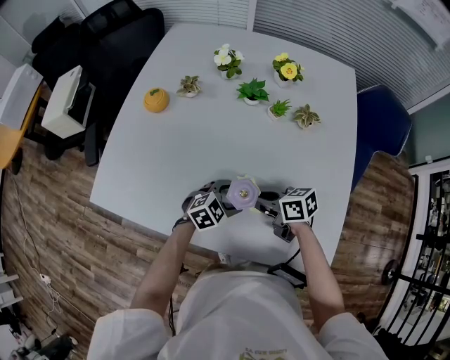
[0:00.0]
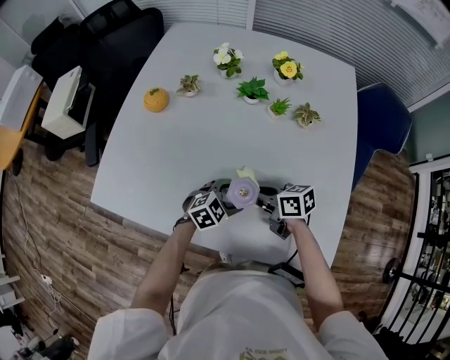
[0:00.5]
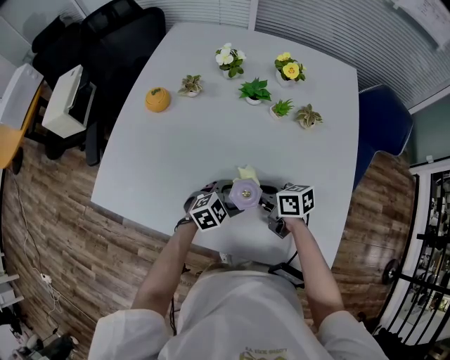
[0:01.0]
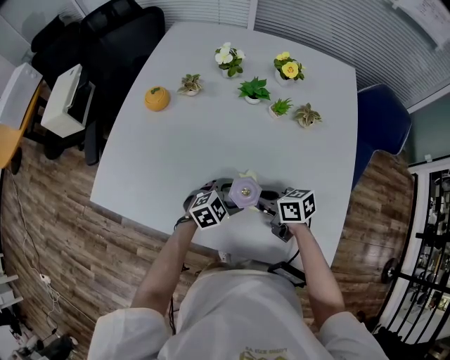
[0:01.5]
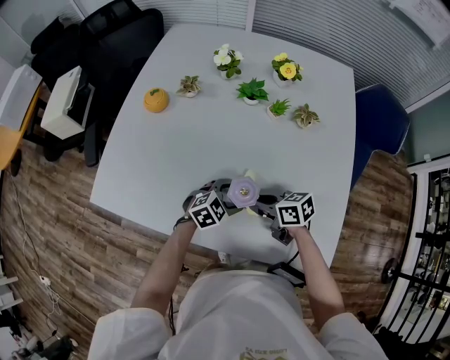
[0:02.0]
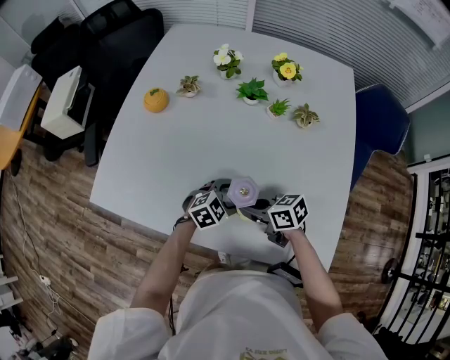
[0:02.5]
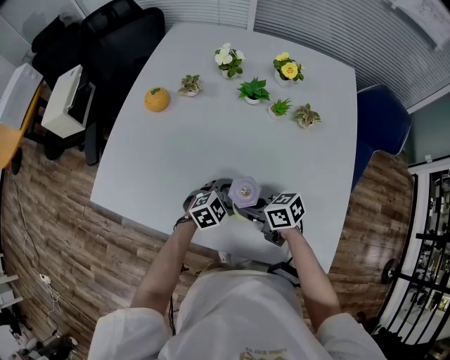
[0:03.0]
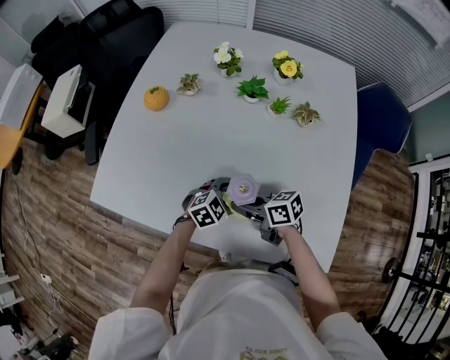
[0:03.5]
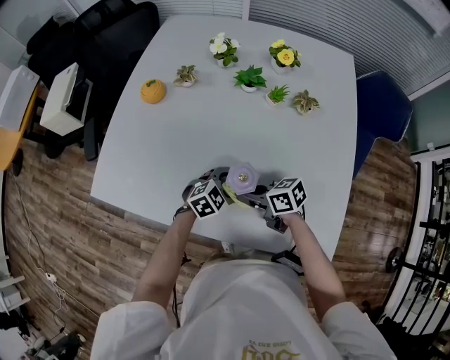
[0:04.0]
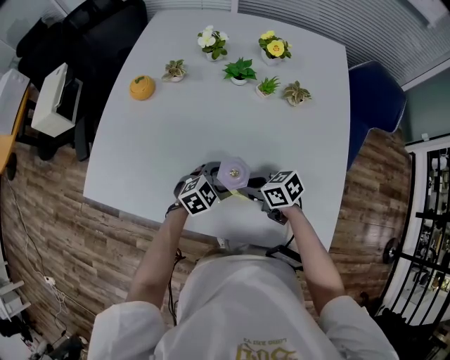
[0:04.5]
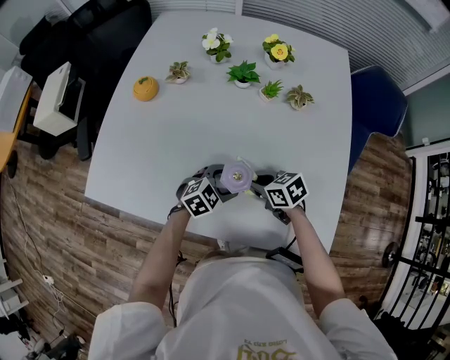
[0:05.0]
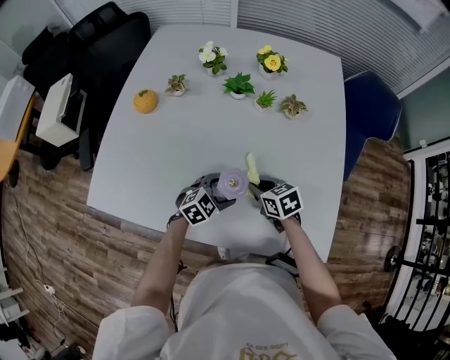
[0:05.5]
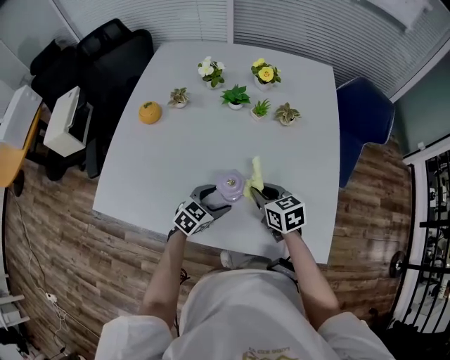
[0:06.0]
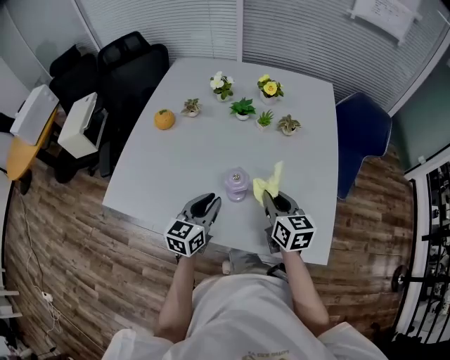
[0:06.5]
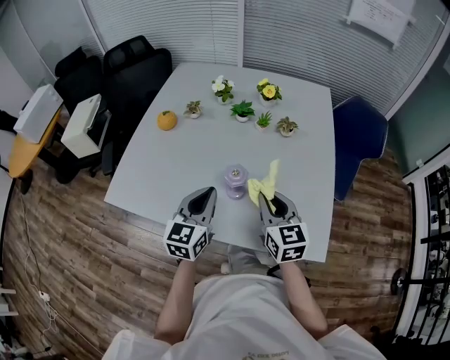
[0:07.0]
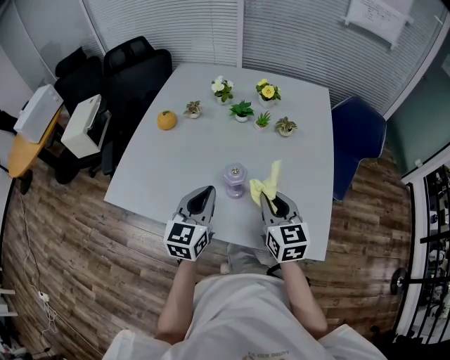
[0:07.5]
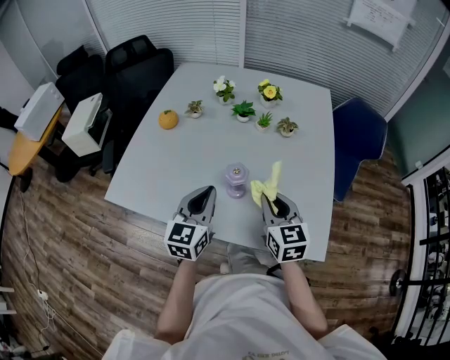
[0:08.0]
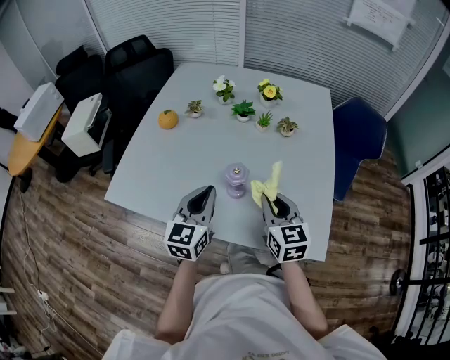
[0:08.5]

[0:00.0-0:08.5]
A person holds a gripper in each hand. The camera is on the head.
0:00.0 to 0:04.0: The grippers make only small movements.
0:04.0 to 0:06.5: The grippers both shift upward by about 15 cm. The left gripper points its fingers some 30 degrees further upward, and closes; the right gripper swivels some 50 degrees.
0:06.5 to 0:08.5: The right gripper moves upward, some 5 cm, while the left gripper moves upward, about 10 cm.

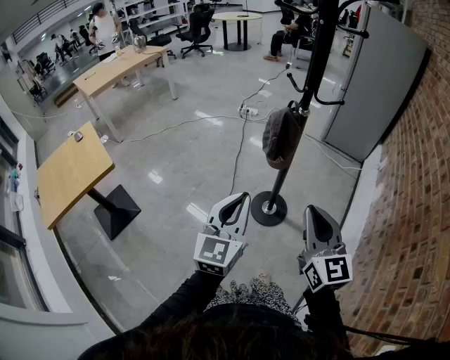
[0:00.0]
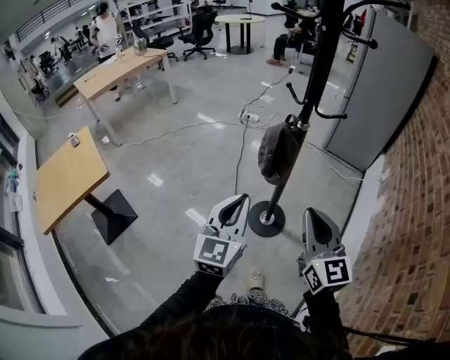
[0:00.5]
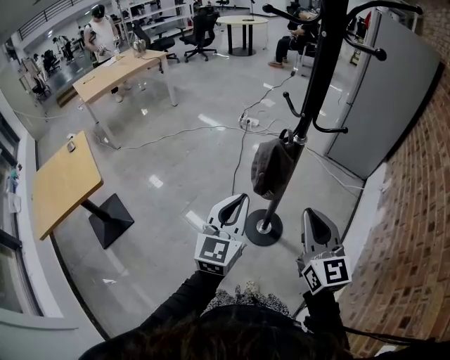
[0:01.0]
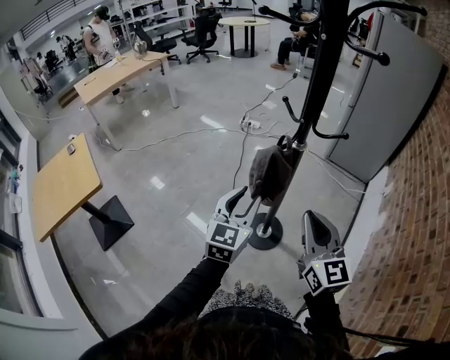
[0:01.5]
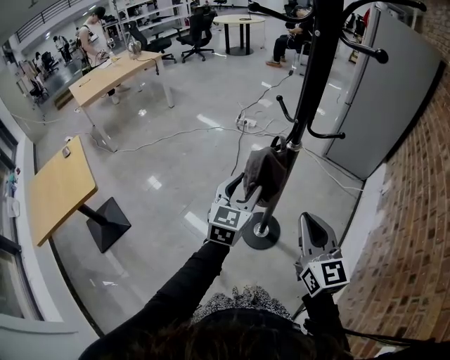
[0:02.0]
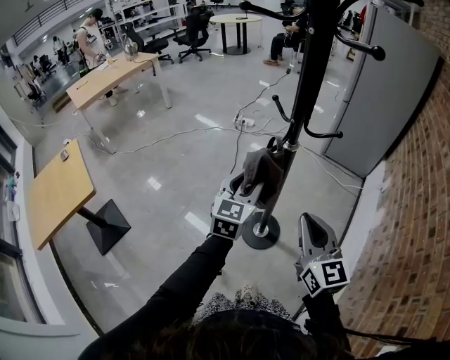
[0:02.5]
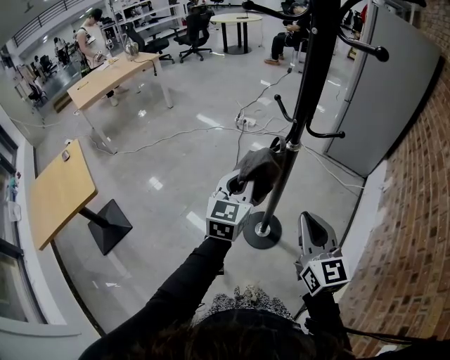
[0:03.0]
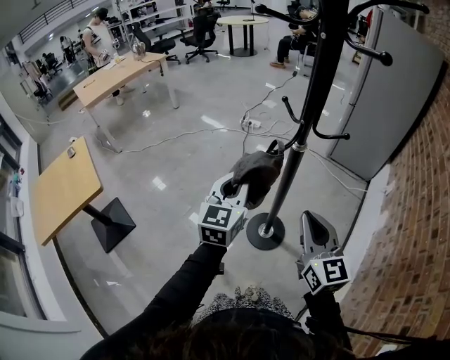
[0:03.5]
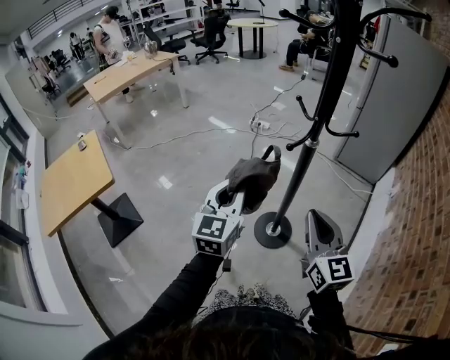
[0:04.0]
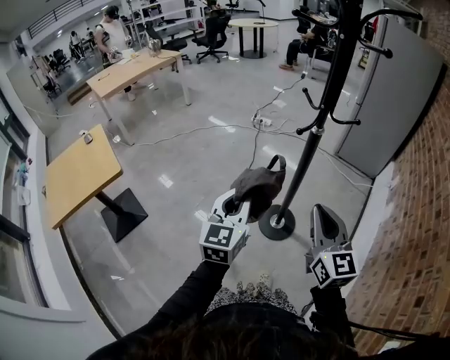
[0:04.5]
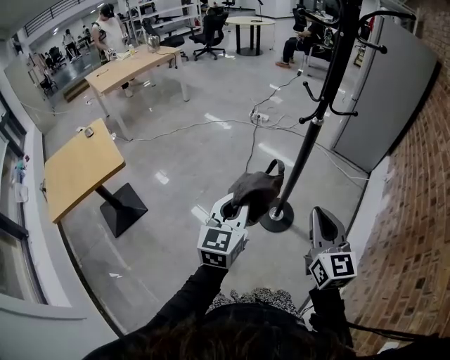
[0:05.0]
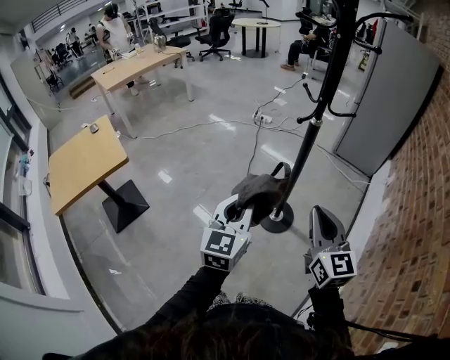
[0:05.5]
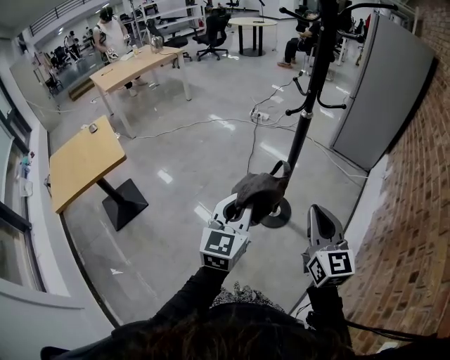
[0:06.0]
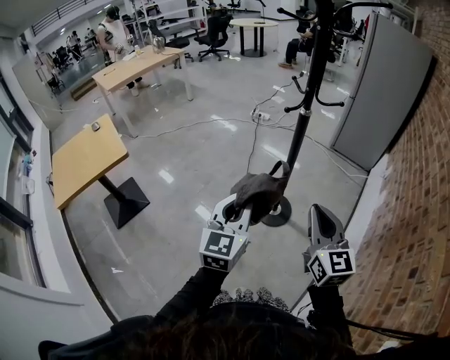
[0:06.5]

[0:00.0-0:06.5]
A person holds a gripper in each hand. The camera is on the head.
0:00.0 to 0:02.0: Both grippers travel together forward, approximately 20 cm. The left gripper opens.
0:02.0 to 0:04.5: The right gripper heads backward and to the left, covering approximately 10 cm; the left gripper travels backward and to the left by roughly 20 cm, and closes its fingers.
0:04.5 to 0:06.5: The two grippers go some 10 cm backward.

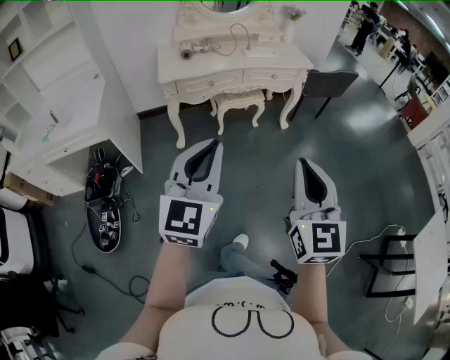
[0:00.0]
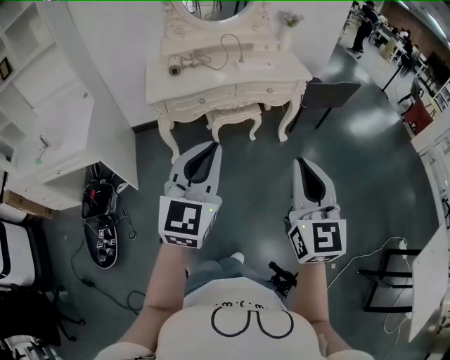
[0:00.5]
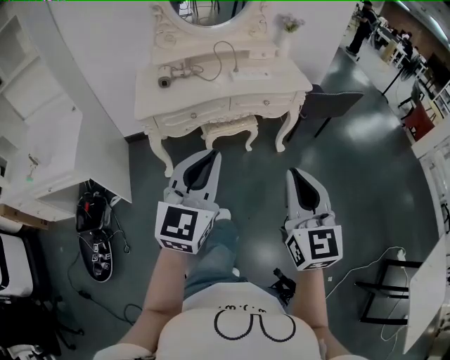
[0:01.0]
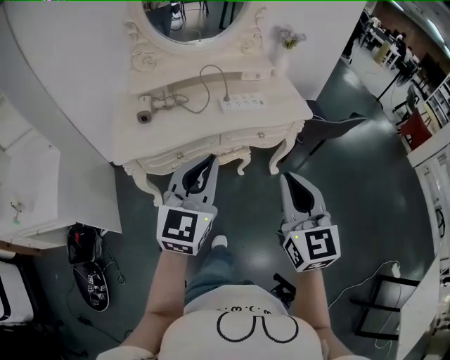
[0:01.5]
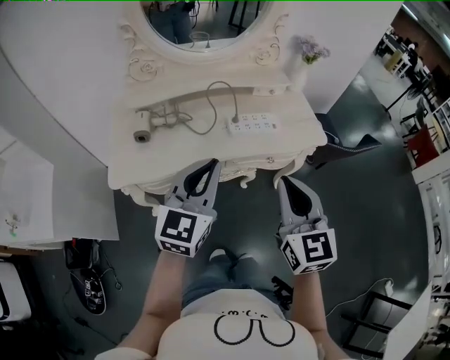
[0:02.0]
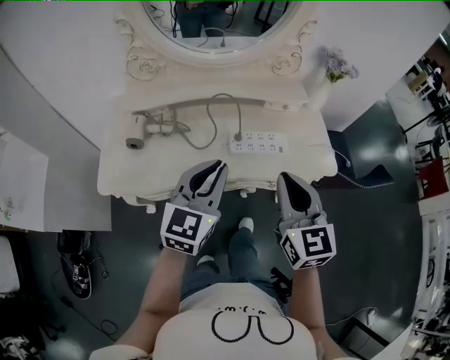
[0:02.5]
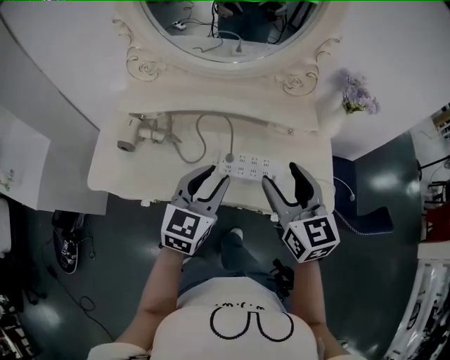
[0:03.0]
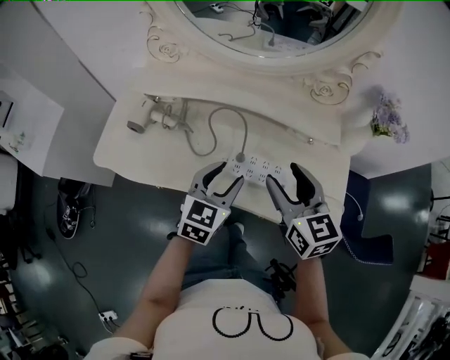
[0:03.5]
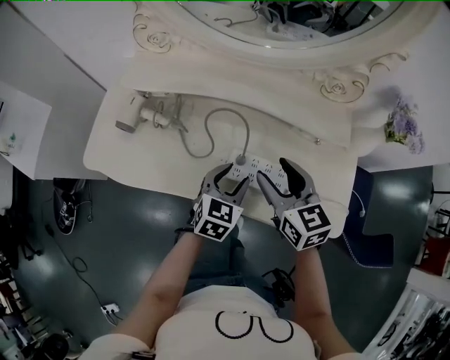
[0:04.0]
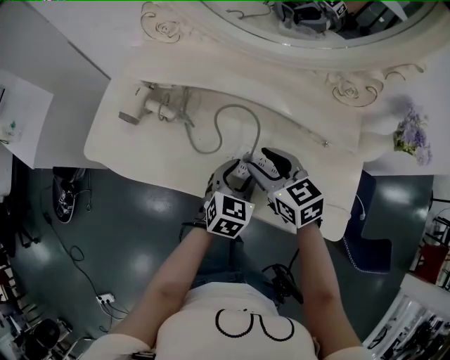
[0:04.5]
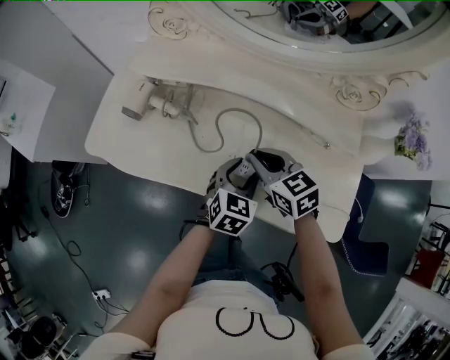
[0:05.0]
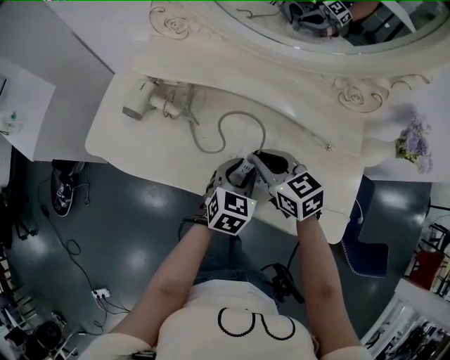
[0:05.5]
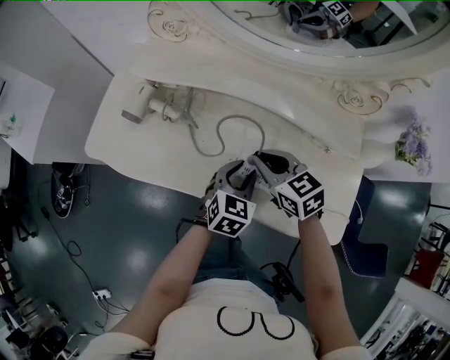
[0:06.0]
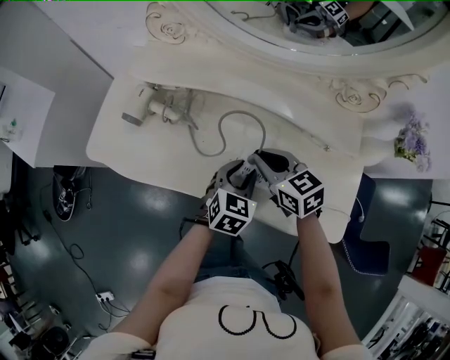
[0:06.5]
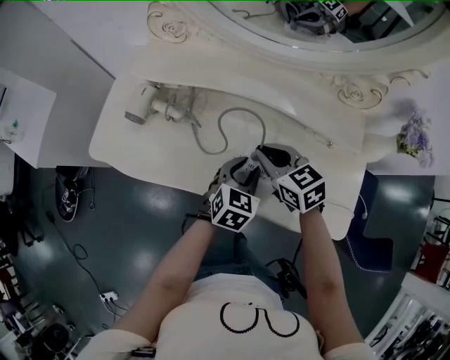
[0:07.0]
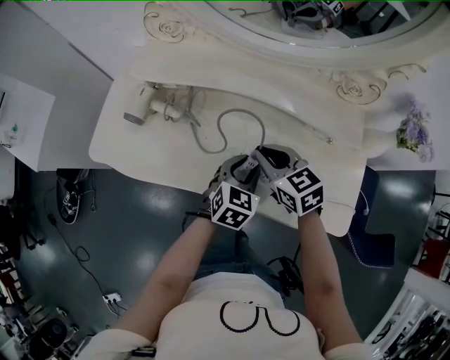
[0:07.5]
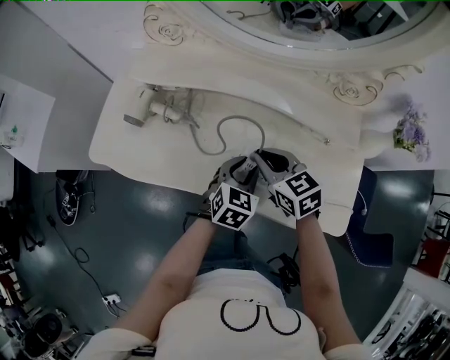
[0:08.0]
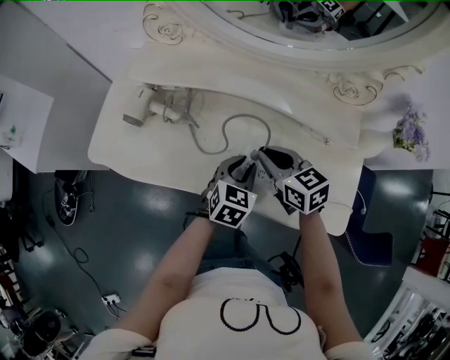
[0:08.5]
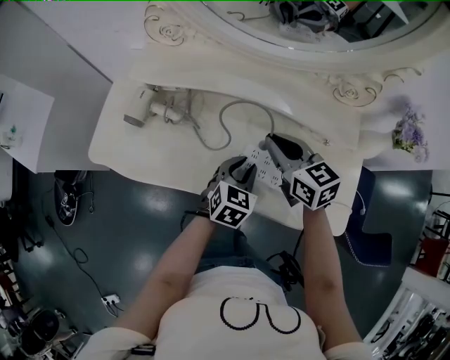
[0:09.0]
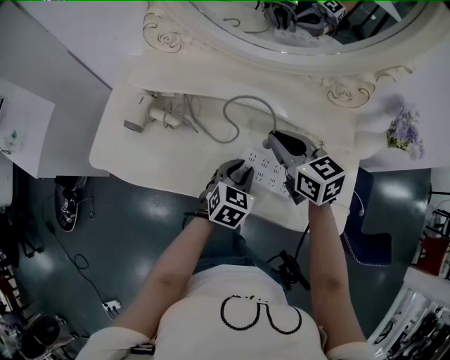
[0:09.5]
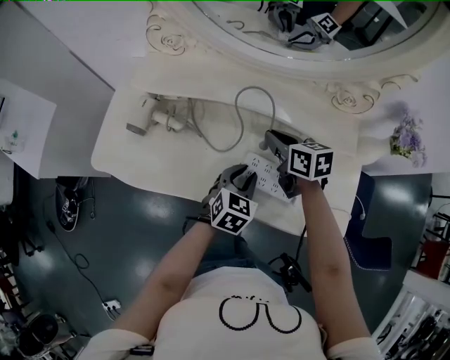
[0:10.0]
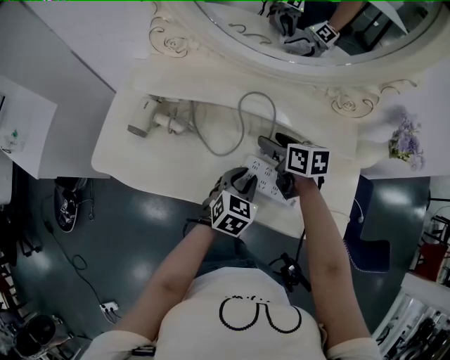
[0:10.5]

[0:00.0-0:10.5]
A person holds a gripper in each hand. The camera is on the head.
0:00.0 to 0:02.0: Both grippers are carried forward, approximately 60 cm.
0:02.0 to 0:04.0: The right gripper ends up some 40 cm from where it was, rotates some 40 degrees, and opens, while the left gripper ends up roughly 40 cm from where it was, points its fingers approximately 30 degrees further downward, and opens.
0:04.0 to 0:06.5: The right gripper travels downward, to the left and forward by some 10 cm, changes its angle by roughly 20 degrees, and closes its fingers.
0:06.5 to 0:08.5: The grippers make only small movements.
0:08.5 to 0:10.5: The right gripper moves forward, about 10 cm, travels upward and back again, about 5 cm each way, turns by some 20 degrees, and opens up.

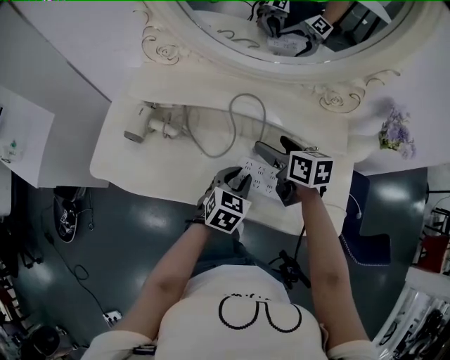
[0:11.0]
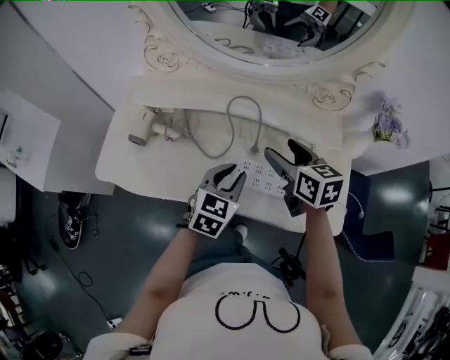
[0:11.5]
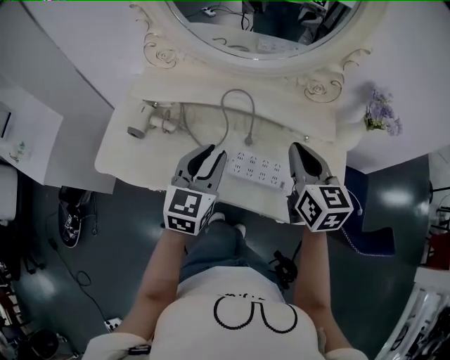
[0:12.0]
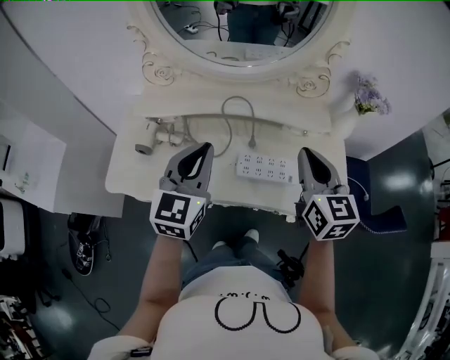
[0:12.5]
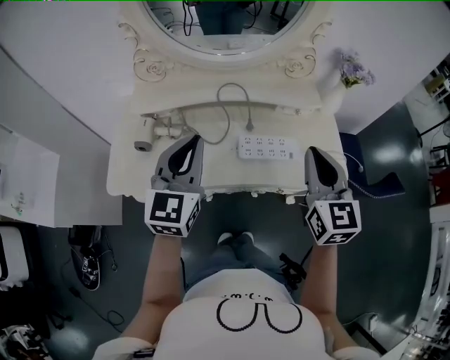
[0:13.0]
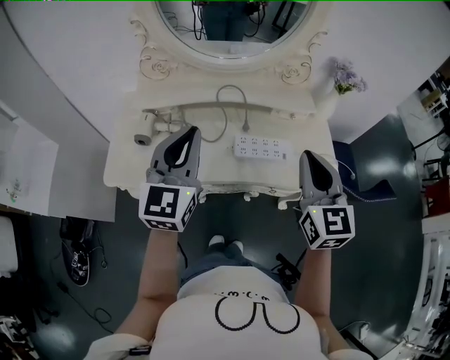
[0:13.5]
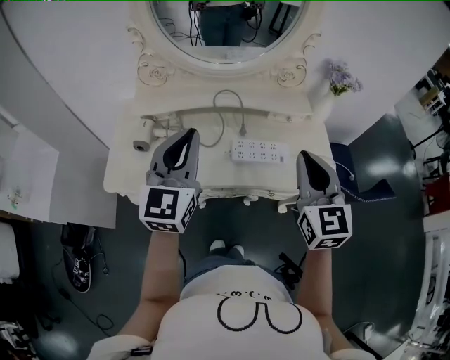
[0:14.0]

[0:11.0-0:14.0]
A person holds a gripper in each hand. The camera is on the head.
0:11.0 to 0:12.5: The right gripper shifts approximately 25 cm upward and backward, turns by some 40 degrees, and closes up. Meanwhile the left gripper goes approximately 25 cm upward and to the left, angles its fingers upward, by roughly 30 degrees, and closes its fingers.
0:12.5 to 0:14.0: Both grippers move backward and upward, some 10 cm.
